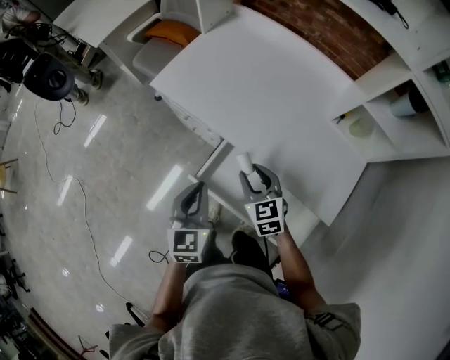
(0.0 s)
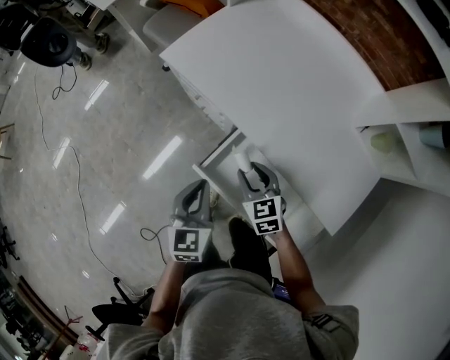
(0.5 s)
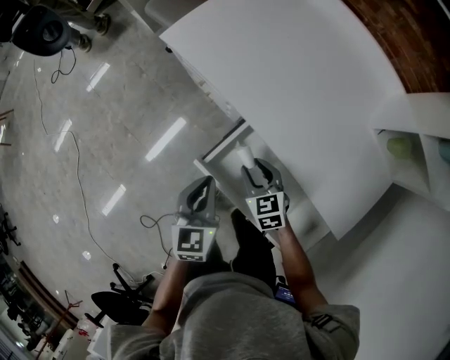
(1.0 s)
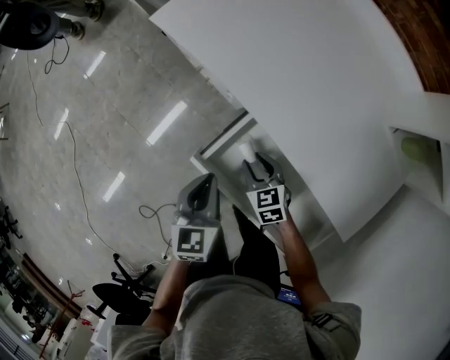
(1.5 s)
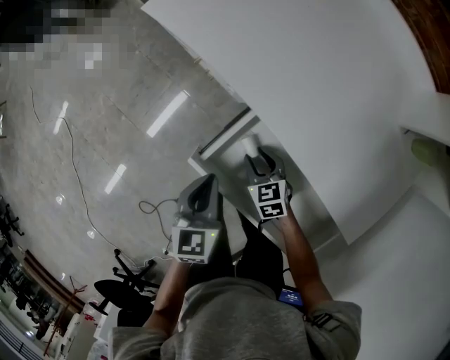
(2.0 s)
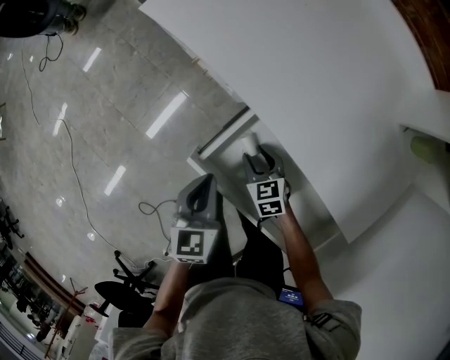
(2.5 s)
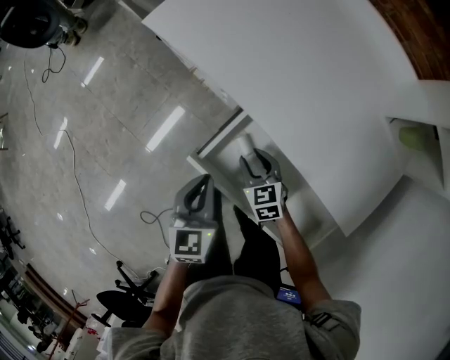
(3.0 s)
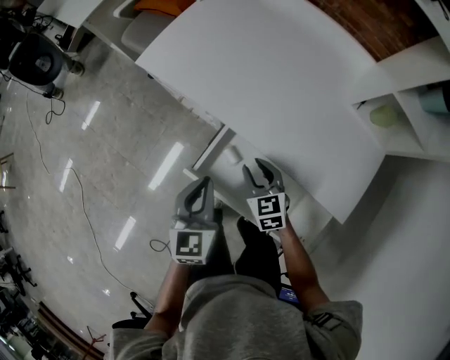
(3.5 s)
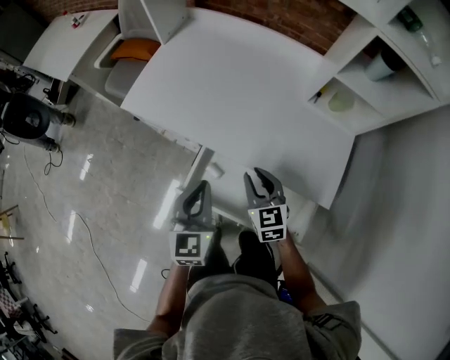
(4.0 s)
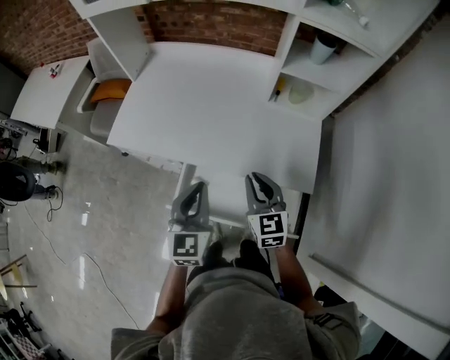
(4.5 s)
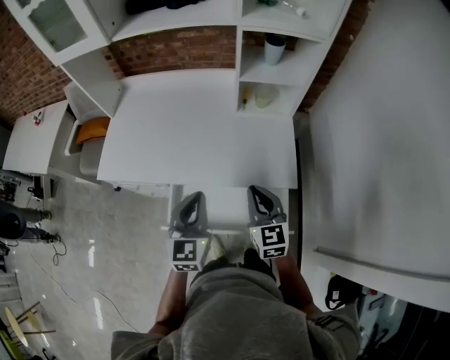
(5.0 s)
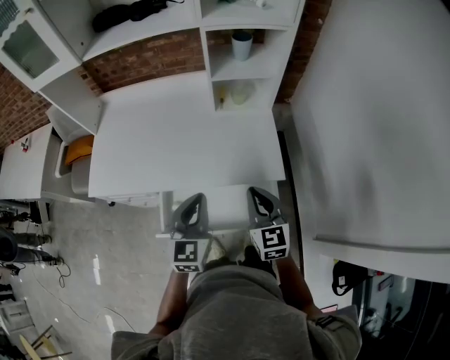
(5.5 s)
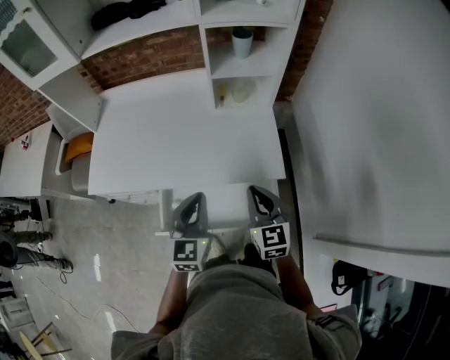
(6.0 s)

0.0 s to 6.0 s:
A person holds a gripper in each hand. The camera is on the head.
0.0 to 2.0 s: Both grippers travel together downward, roughly 25 cm. The right gripper changes its angle by approximately 20 degrees.
2.0 to 4.0 s: Both grippers move upward, roughly 25 cm. The right gripper rotates some 40 degrees. The left gripper swivels about 30 degrees.
4.0 to 6.0 s: The left gripper changes place by about 20 cm, and rotates approximately 30 degrees. The right gripper ends up roughly 25 cm from where it was, rotates some 30 degrees, and closes.

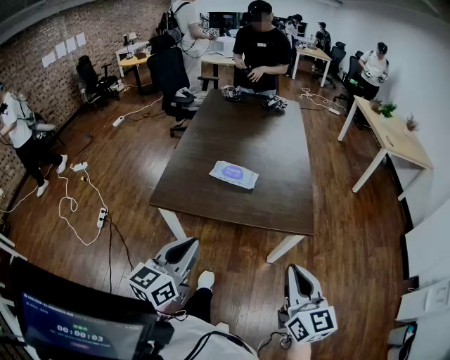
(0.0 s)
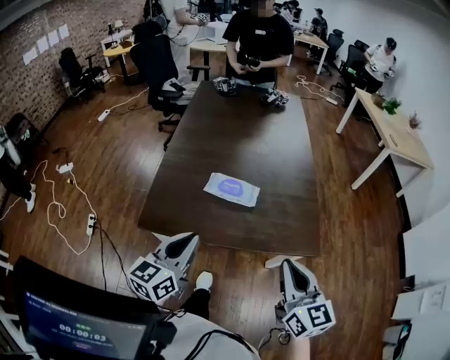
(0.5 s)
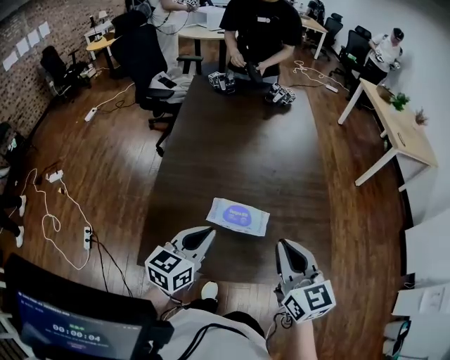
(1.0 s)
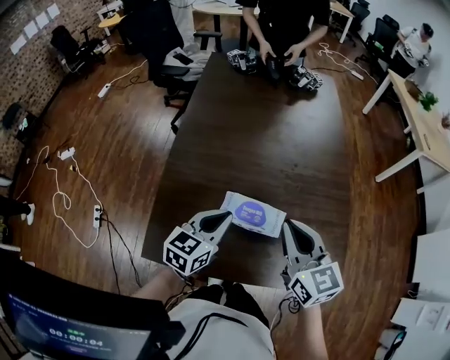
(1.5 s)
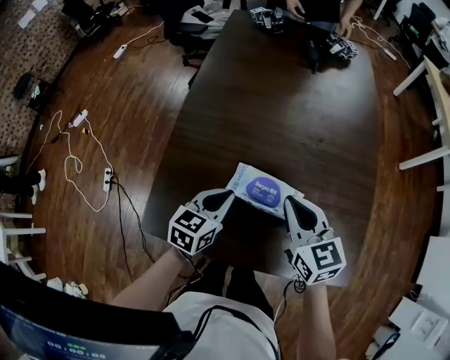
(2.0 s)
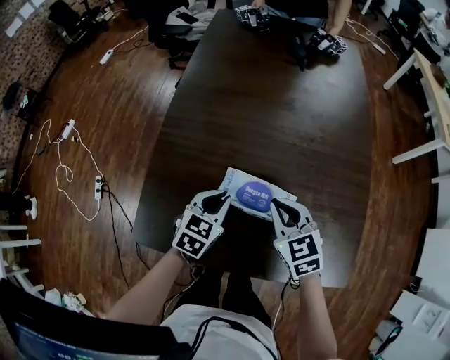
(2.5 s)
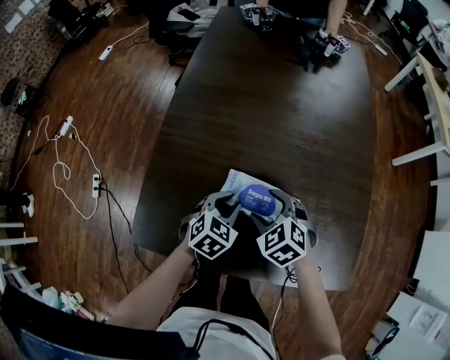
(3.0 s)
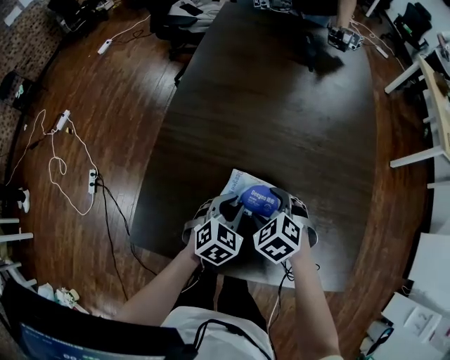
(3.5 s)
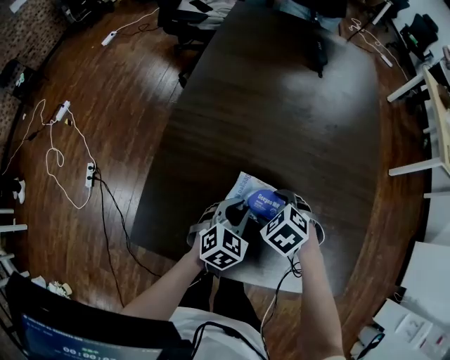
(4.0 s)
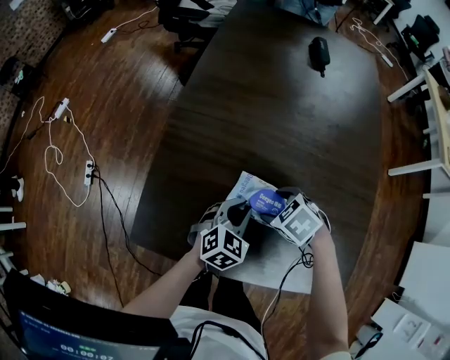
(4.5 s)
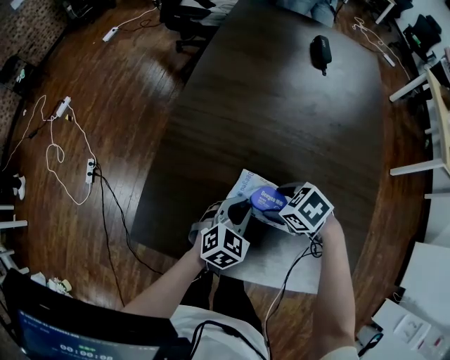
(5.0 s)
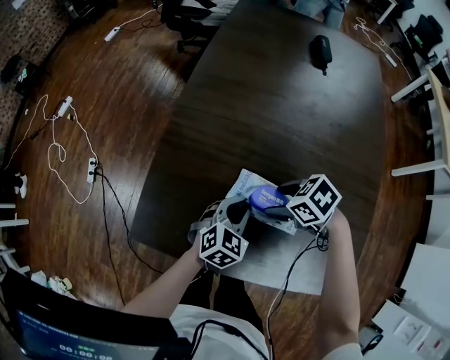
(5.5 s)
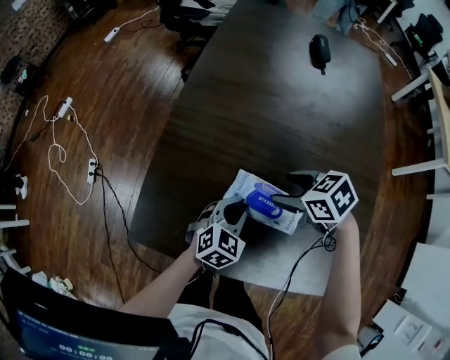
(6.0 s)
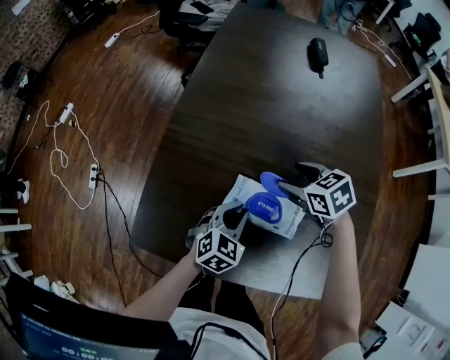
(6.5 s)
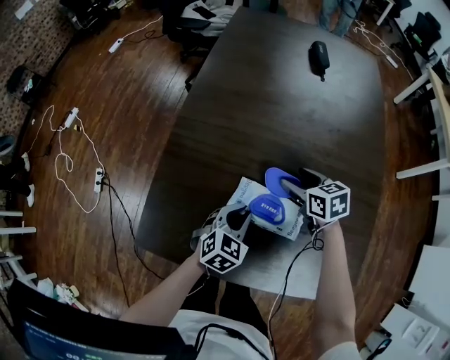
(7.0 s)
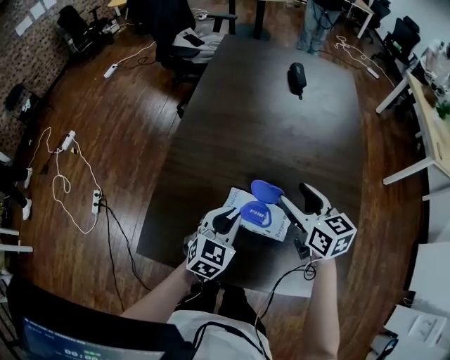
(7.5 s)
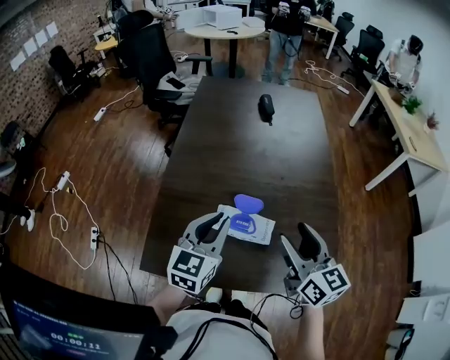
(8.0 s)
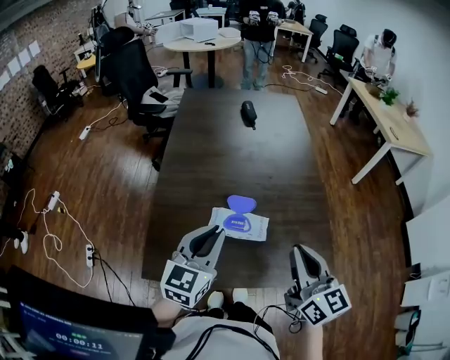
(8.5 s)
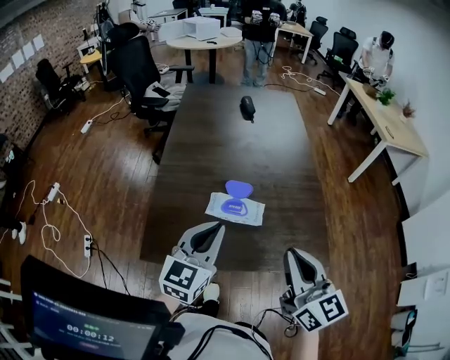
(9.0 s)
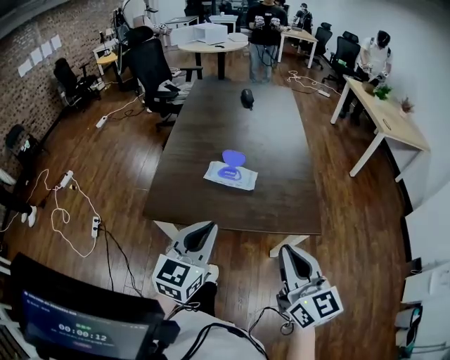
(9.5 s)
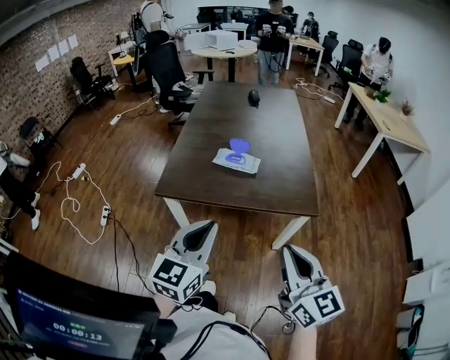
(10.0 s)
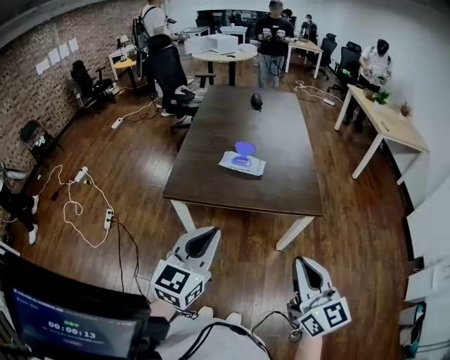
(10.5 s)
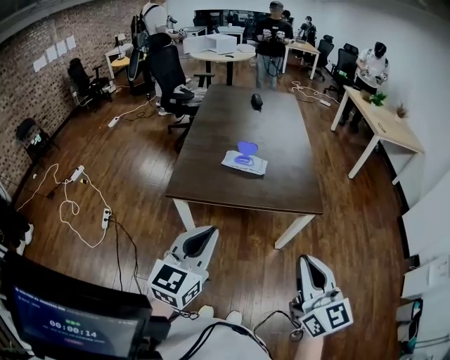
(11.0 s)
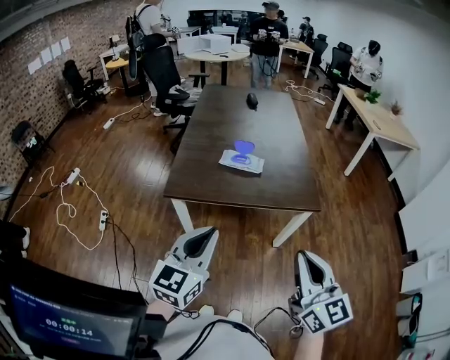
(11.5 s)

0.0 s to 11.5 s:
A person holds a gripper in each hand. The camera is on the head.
0.0 to 2.0 s: The two grippers travel together, forward, roughly 50 cm. The right gripper swivels roughly 20 degrees, while the left gripper moves downward, approximately 20 cm, and changes its angle by some 30 degrees.
2.0 to 4.0 s: The left gripper heads downward, covering roughly 10 cm, and changes its angle by about 30 degrees. Meanwhile the right gripper shifts some 15 cm downward, points its fingers some 50 degrees further downward, and opens its fingers.
4.0 to 6.0 s: The right gripper is displaced upward by about 5 cm, and changes its angle by roughly 30 degrees.
6.0 to 7.5 s: The left gripper shifts some 10 cm upward. The right gripper goes some 10 cm upward and to the right, and changes its angle by approximately 50 degrees.
7.5 to 9.5 s: The left gripper travels backward and upward by some 40 cm, and rotates approximately 20 degrees; the right gripper heads backward, covering some 50 cm, rotates about 30 degrees, and closes its fingers.
9.5 to 11.5 s: The two grippers go approximately 20 cm backward.

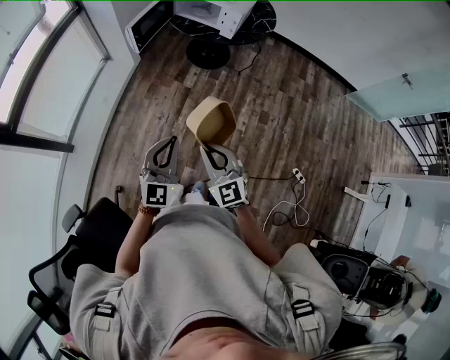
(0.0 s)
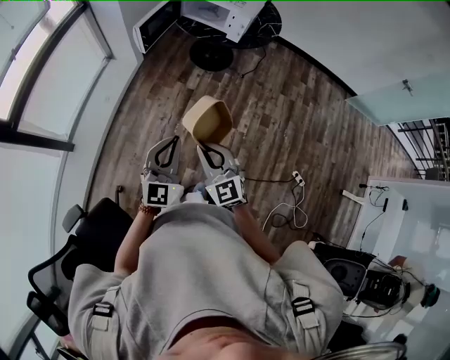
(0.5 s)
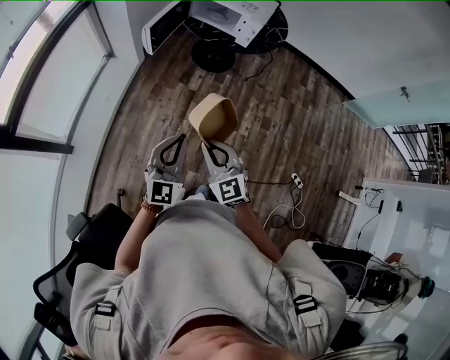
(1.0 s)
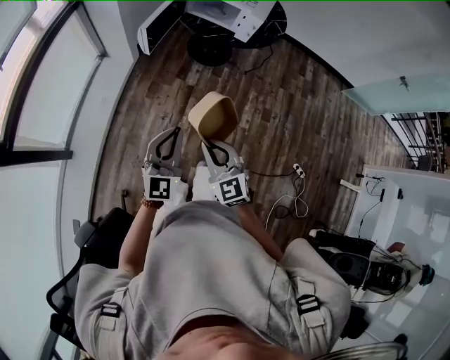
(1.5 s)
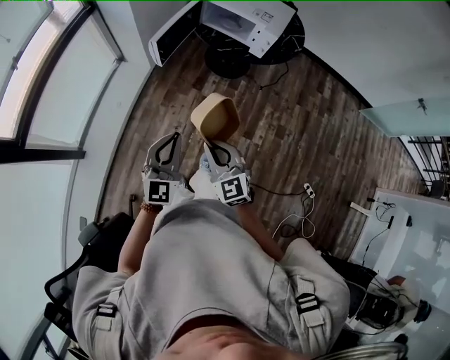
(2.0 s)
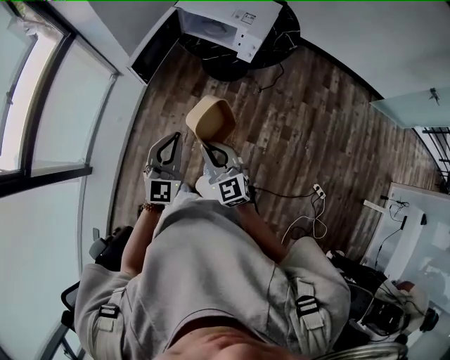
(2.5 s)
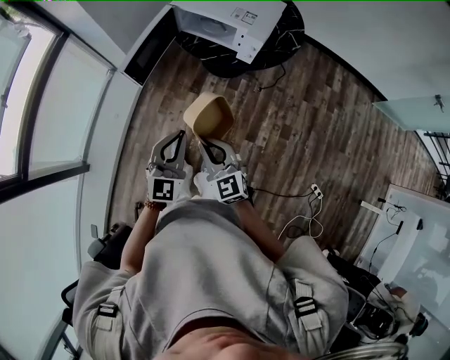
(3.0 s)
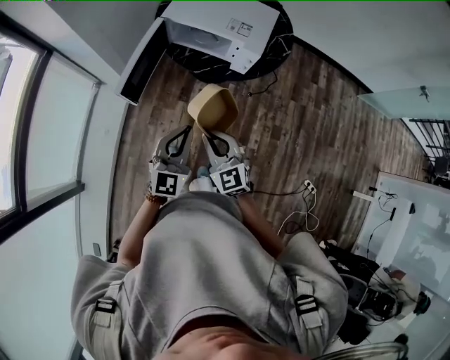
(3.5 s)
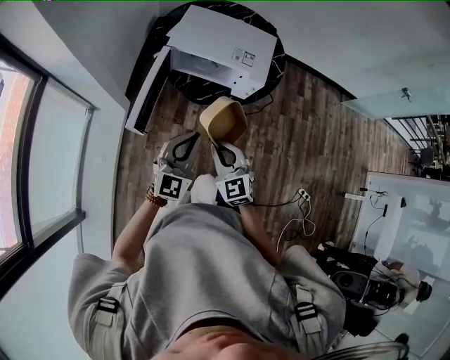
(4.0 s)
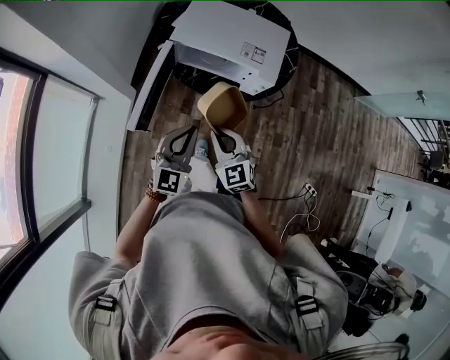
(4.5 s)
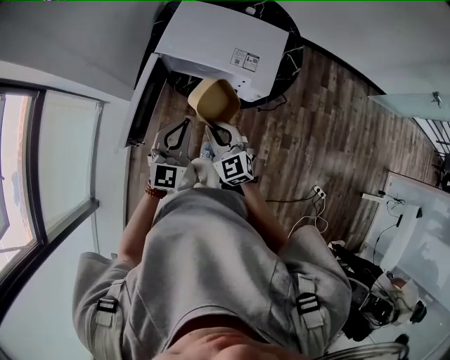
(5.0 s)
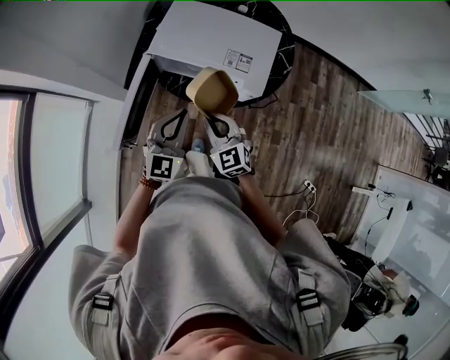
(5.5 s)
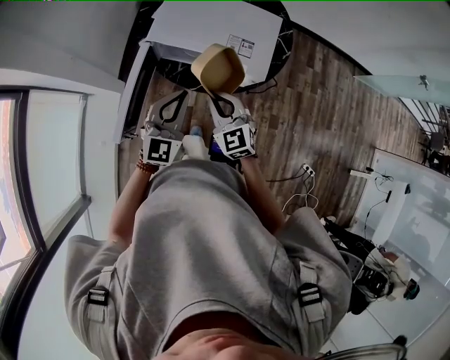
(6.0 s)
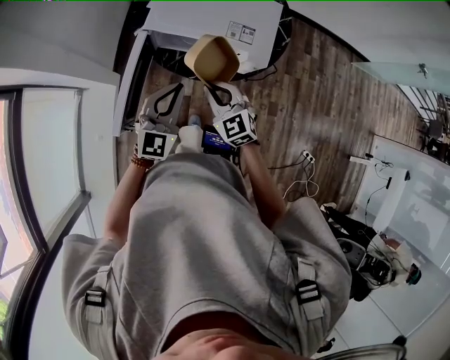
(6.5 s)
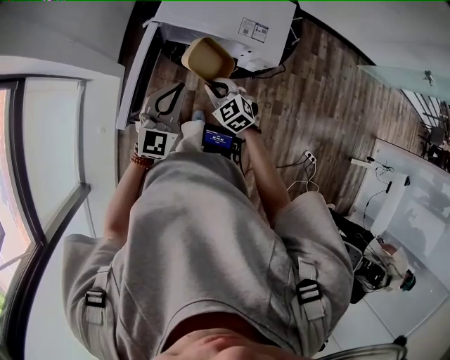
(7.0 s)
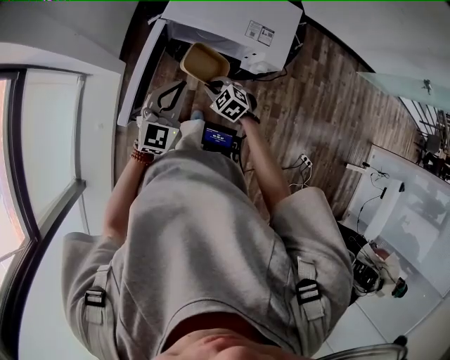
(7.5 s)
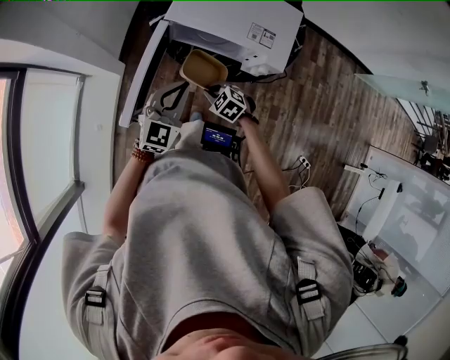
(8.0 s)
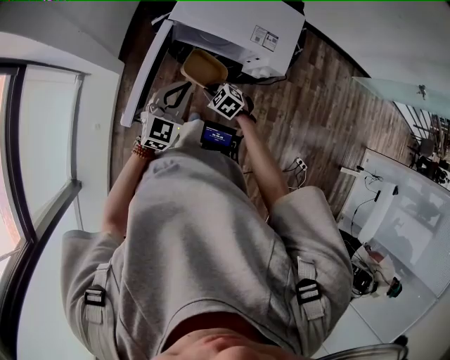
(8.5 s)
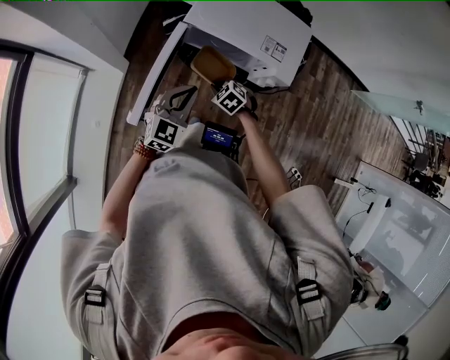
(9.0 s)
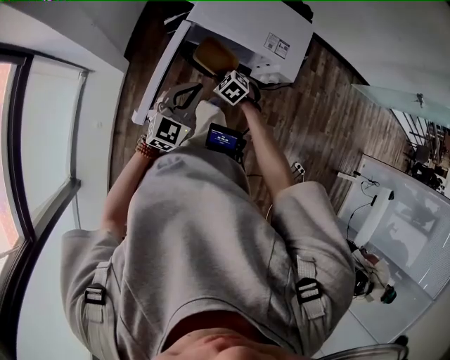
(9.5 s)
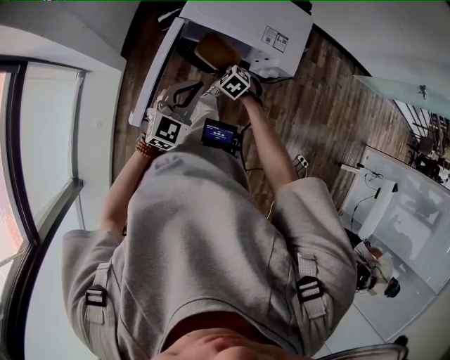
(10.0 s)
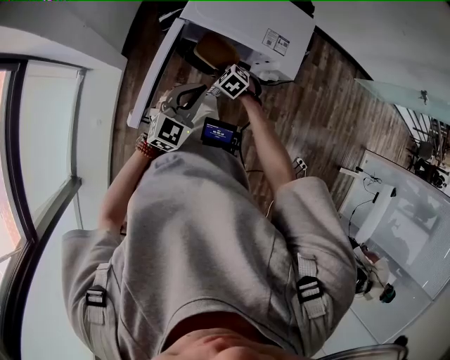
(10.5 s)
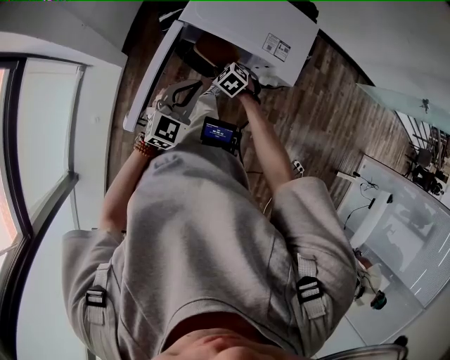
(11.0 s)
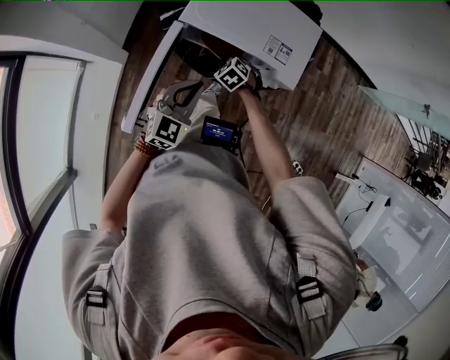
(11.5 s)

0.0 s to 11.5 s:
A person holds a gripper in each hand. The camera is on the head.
0.0 to 2.0 s: The two grippers go about 20 cm forward and to the left.
2.0 to 4.0 s: The grippers both shift forward by approximately 30 cm. The left gripper turns by approximately 20 degrees.
4.0 to 6.0 s: The two grippers go about 20 cm forward.
6.0 to 7.5 s: The right gripper travels downward by some 20 cm, and points its fingers some 30 degrees further downward, while the left gripper moves downward, about 5 cm.
7.5 to 9.5 s: The right gripper heads forward, covering some 5 cm.
9.5 to 11.5 s: The right gripper heads forward, covering some 10 cm.
